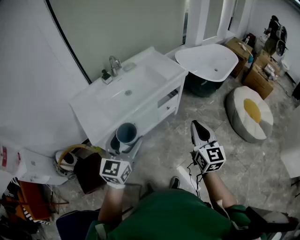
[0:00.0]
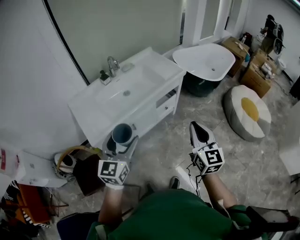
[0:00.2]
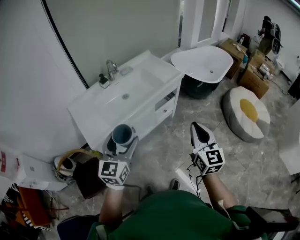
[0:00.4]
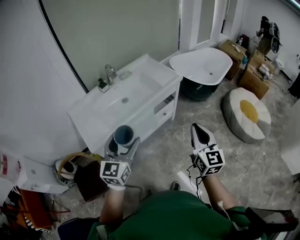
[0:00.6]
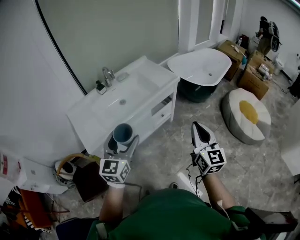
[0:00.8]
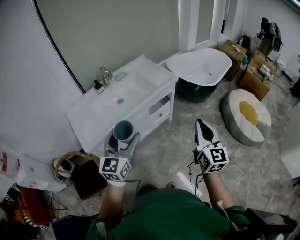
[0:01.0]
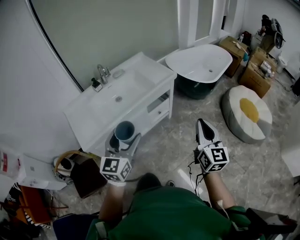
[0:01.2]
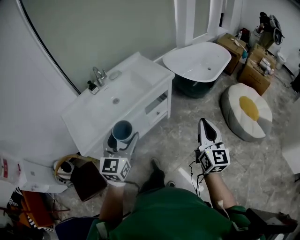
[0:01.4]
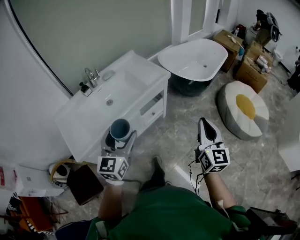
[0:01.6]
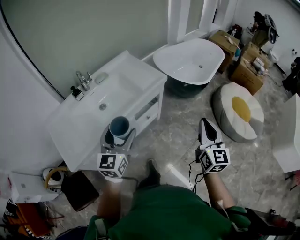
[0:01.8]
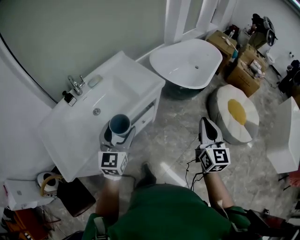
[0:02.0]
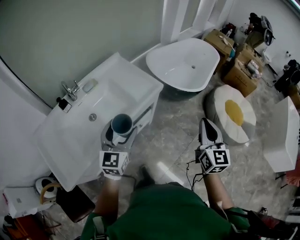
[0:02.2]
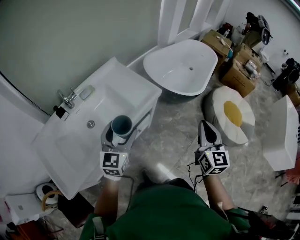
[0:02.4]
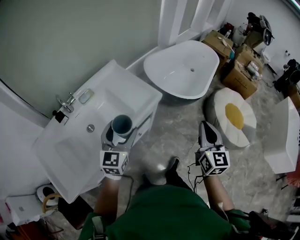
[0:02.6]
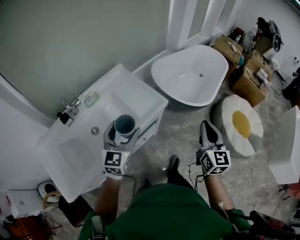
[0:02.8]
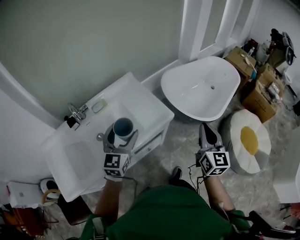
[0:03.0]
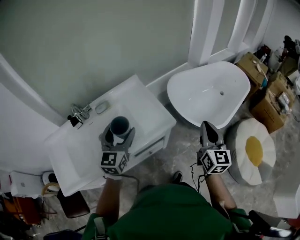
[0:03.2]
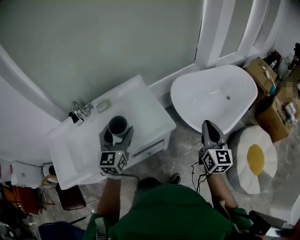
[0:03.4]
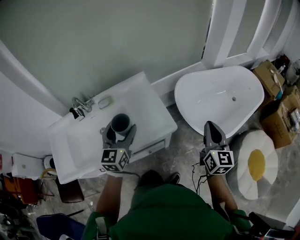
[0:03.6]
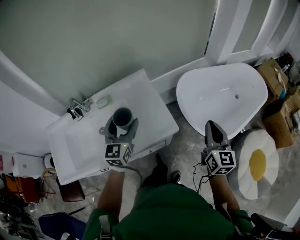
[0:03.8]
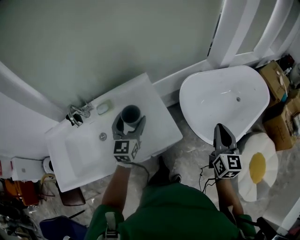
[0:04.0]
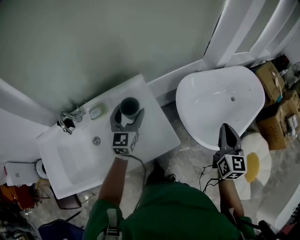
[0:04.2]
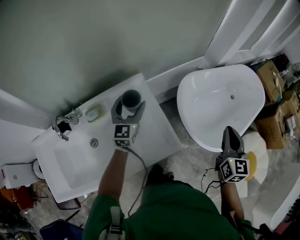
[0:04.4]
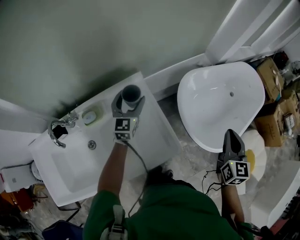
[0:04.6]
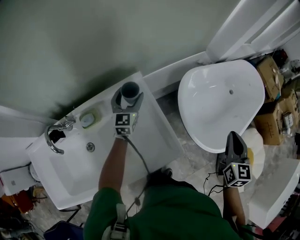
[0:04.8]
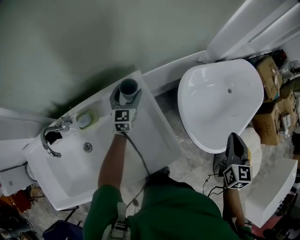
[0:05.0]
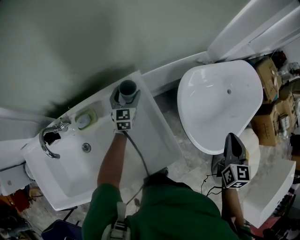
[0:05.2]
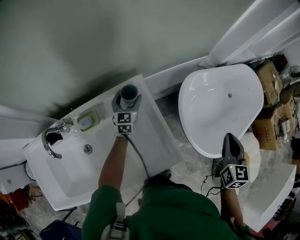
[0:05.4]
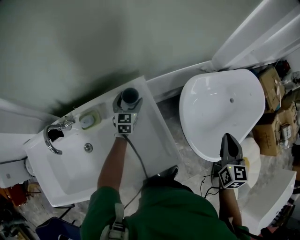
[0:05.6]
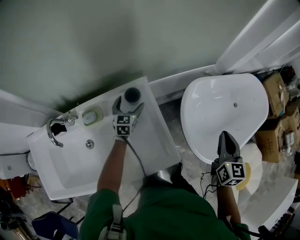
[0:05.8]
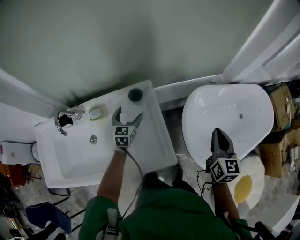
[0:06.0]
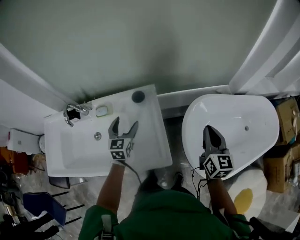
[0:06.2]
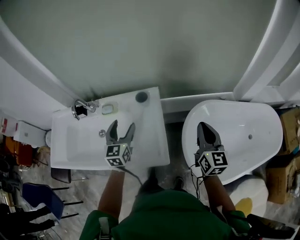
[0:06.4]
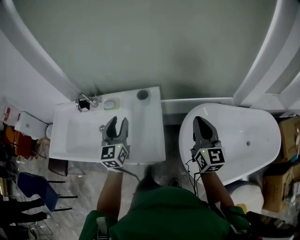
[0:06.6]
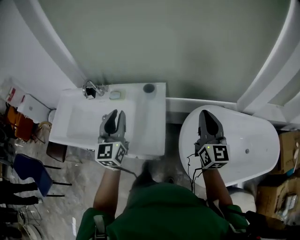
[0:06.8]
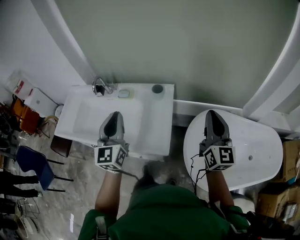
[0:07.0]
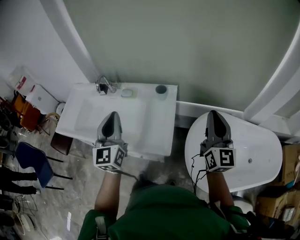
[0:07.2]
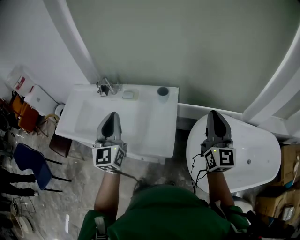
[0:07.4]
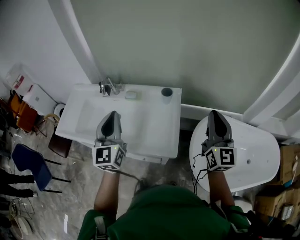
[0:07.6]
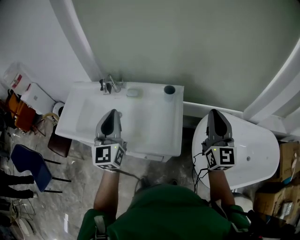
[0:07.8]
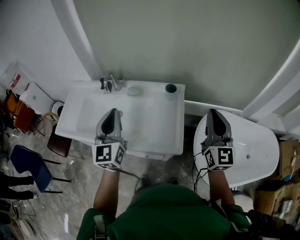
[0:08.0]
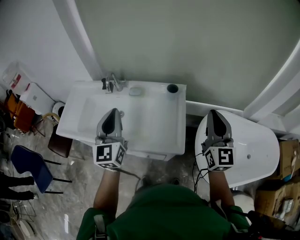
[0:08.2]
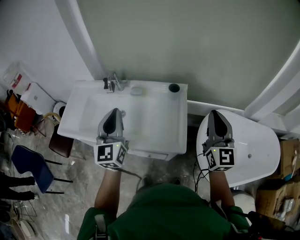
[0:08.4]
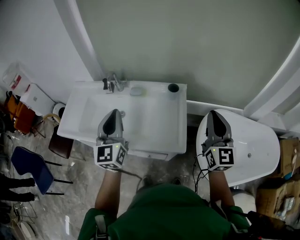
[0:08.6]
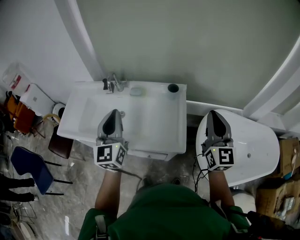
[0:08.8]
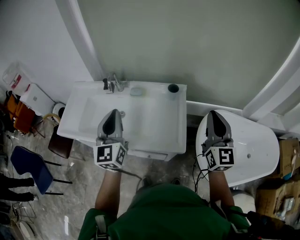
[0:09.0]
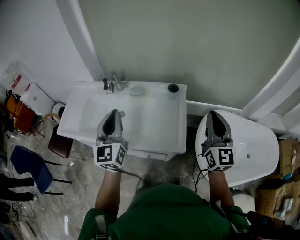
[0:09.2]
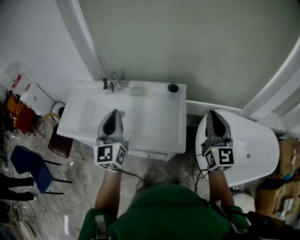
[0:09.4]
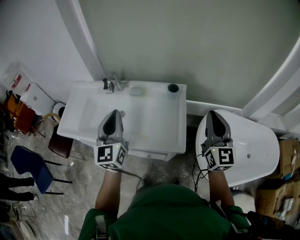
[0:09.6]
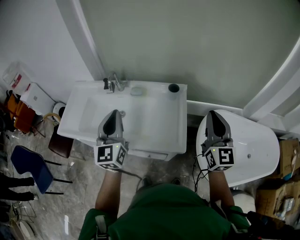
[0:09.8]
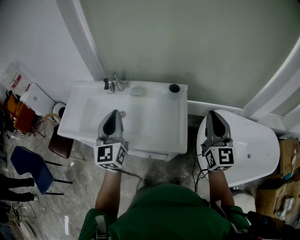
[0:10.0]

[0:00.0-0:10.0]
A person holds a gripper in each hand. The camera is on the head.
0:00.0 to 0:01.4: The left gripper goes some 15 cm to the right and forward; the right gripper is displaced to the right by roughly 15 cm.
0:01.4 to 0:02.8: The two grippers travel together, forward, about 40 cm.
0:02.8 to 0:04.2: The grippers both shift forward by some 40 cm. The left gripper swivels about 20 degrees.
0:04.2 to 0:05.8: The right gripper heads forward and downward, covering approximately 15 cm; the left gripper is displaced downward, forward and to the left by roughly 30 cm.
0:05.8 to 0:07.2: The right gripper is displaced upward by roughly 20 cm, and points its fingers about 30 degrees further upward; the left gripper moves approximately 50 cm, angles its fingers upward, by approximately 30 degrees, and closes.
0:07.2 to 0:08.6: The two grippers go approximately 15 cm to the left.
0:08.6 to 0:10.0: Both grippers stay about where they are.

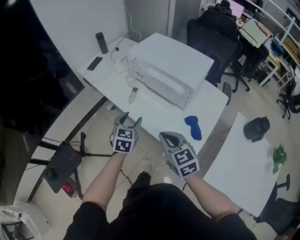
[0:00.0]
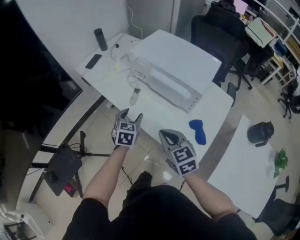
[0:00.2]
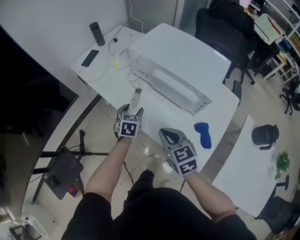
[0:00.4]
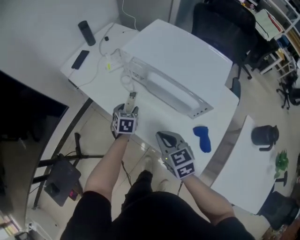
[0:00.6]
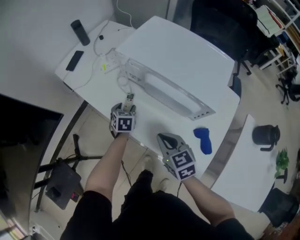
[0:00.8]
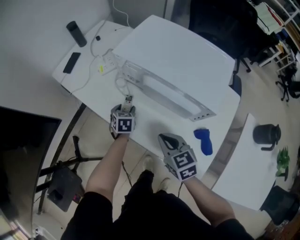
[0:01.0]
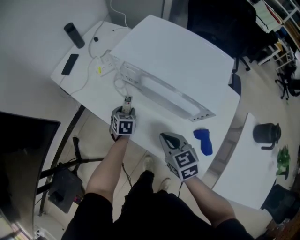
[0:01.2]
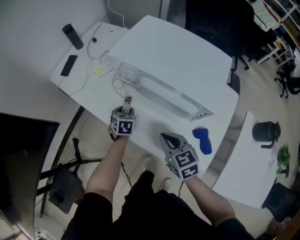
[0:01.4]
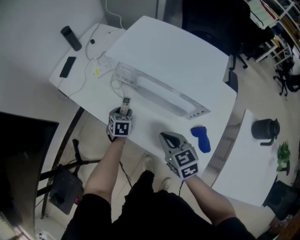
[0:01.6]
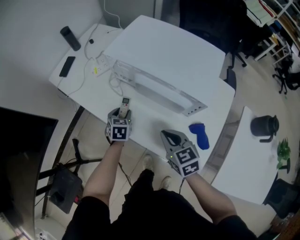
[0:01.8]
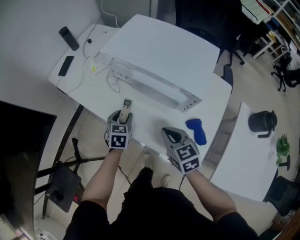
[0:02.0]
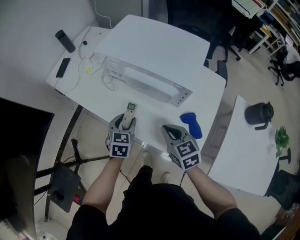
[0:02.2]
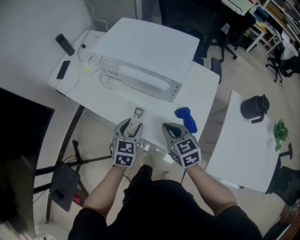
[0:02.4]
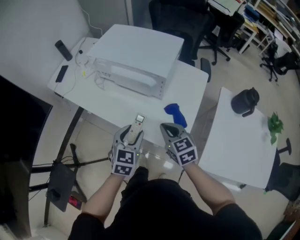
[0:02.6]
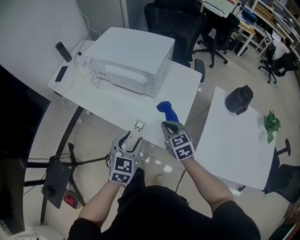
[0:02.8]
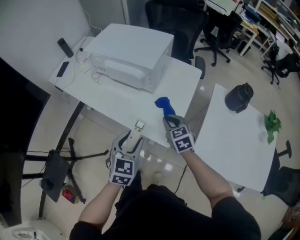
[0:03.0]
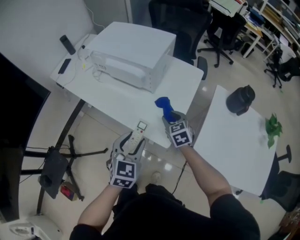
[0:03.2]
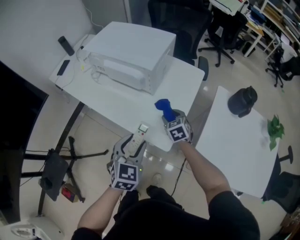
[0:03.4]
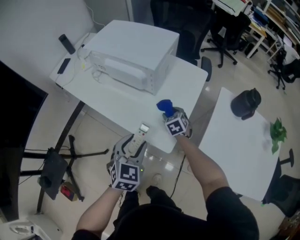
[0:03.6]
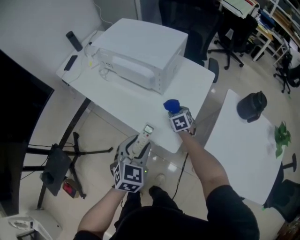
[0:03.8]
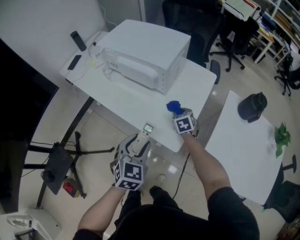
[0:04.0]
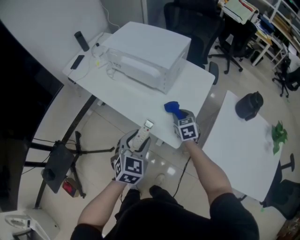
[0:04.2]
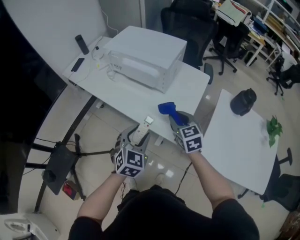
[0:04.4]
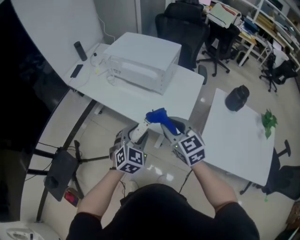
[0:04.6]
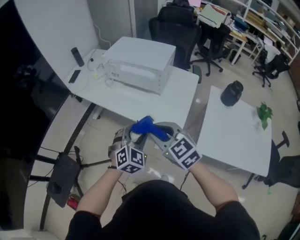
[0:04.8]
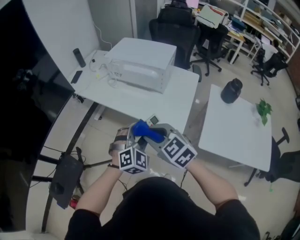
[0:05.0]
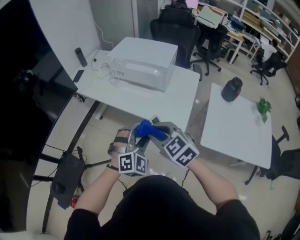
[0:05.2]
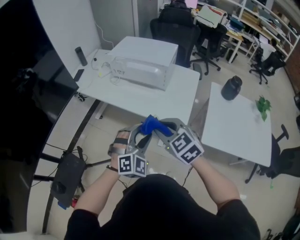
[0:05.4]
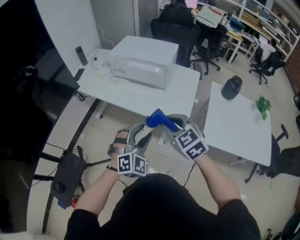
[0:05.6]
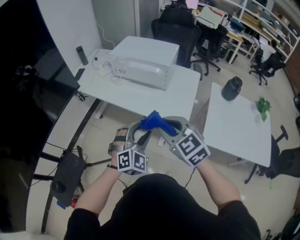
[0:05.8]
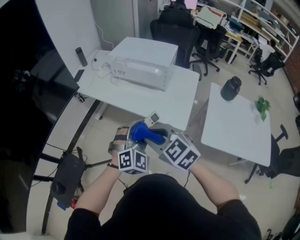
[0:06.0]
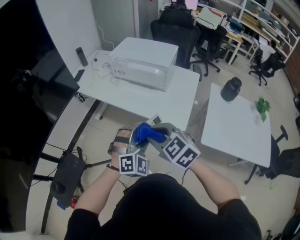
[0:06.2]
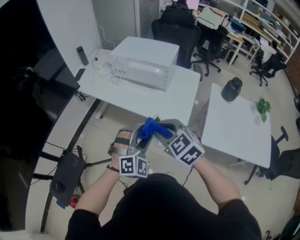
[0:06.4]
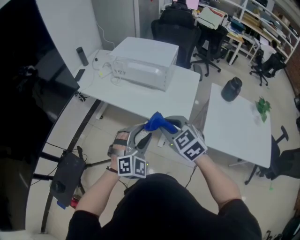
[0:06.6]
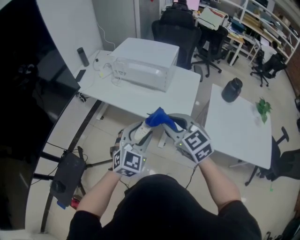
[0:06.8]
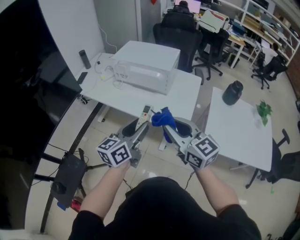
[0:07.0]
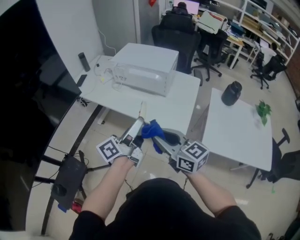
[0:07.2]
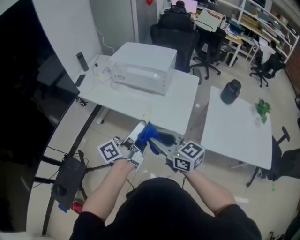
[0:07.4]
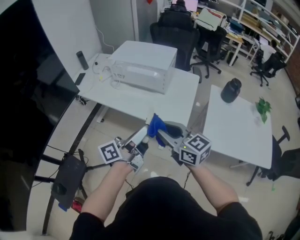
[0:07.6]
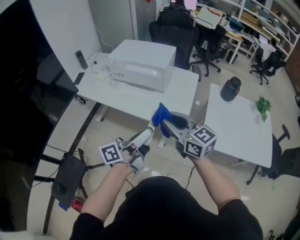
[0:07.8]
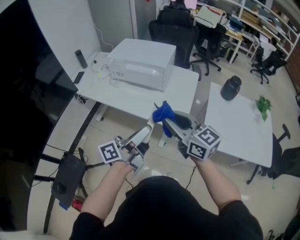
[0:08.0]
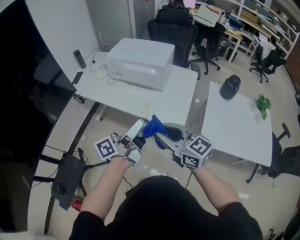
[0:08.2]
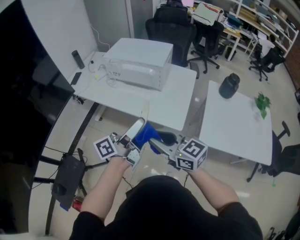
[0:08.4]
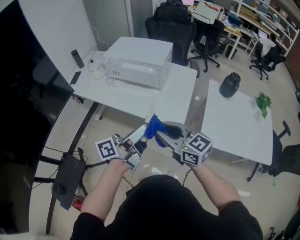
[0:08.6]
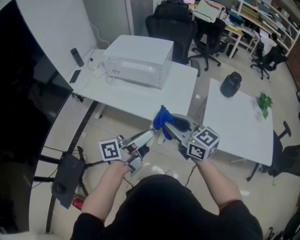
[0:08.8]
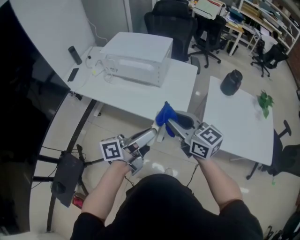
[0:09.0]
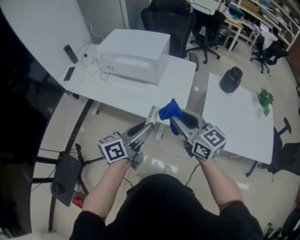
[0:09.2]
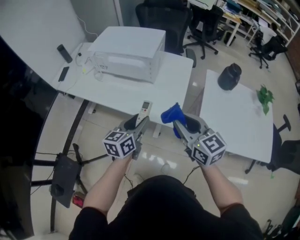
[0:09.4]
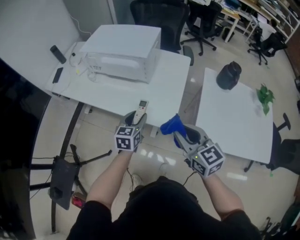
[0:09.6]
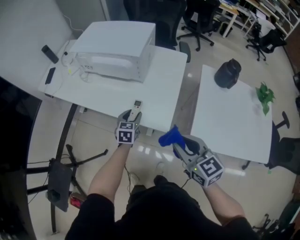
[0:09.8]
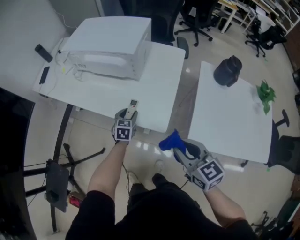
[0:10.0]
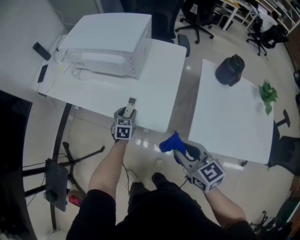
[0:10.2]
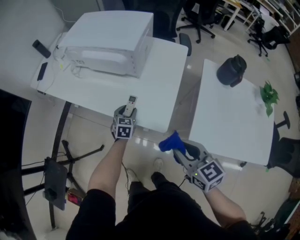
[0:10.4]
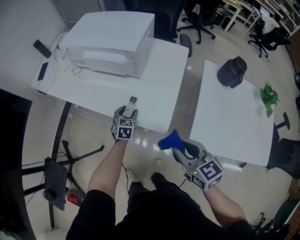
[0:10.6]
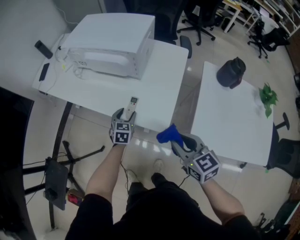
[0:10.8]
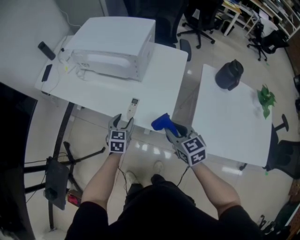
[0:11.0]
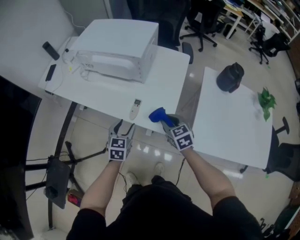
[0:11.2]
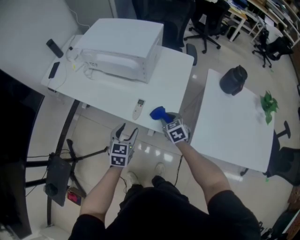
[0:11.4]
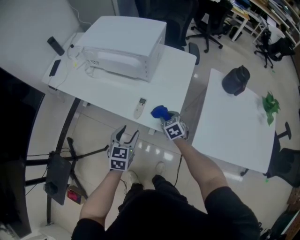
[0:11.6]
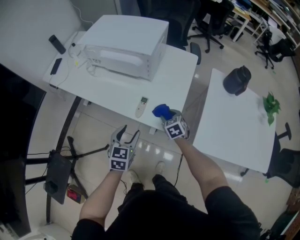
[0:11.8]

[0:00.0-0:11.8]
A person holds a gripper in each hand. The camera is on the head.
0:00.0 to 0:01.4: The grippers both shift forward and downward by approximately 25 cm. The left gripper swivels roughly 20 degrees.
0:01.4 to 0:03.0: The left gripper heads backward, upward and to the right, covering approximately 50 cm, and turns by some 30 degrees; the right gripper goes approximately 25 cm to the right and backward.
0:03.0 to 0:04.4: The right gripper goes about 10 cm upward, and opens, then closes again.
0:04.4 to 0:06.0: The right gripper goes left and right, approximately 25 cm each way, reversing 2 times, and swivels some 20 degrees. The left gripper travels backward, to the left and upward by roughly 15 cm, and changes its angle by roughly 30 degrees.
0:06.0 to 0:07.4: The left gripper is displaced upward by roughly 5 cm, and twists roughly 110 degrees counterclockwise, seen from behind; the right gripper turns by some 30 degrees.
0:07.4 to 0:08.8: The right gripper moves left and right over approximately 10 cm, changing direction 2 times, while the left gripper shifts about 5 cm to the right.
0:08.8 to 0:10.4: The left gripper is displaced downward and forward by some 40 cm, and points its fingers about 60 degrees further downward, while the right gripper travels to the right and downward by some 20 cm, and changes its angle by approximately 30 degrees.
0:10.4 to 0:11.8: The right gripper shifts roughly 25 cm downward and forward, and rotates about 30 degrees; the left gripper moves backward and upward, some 20 cm.

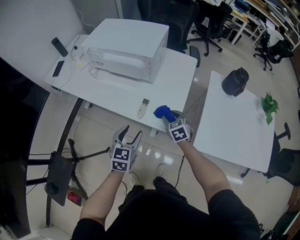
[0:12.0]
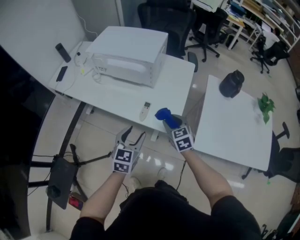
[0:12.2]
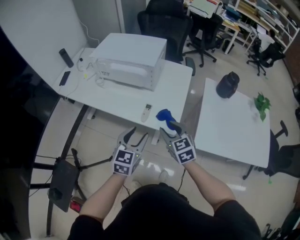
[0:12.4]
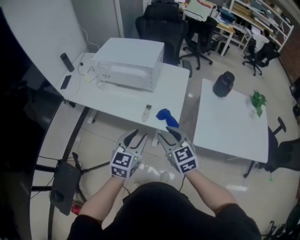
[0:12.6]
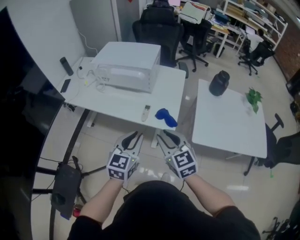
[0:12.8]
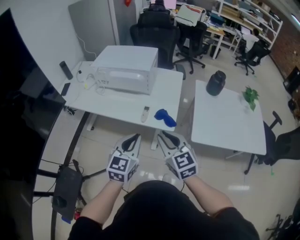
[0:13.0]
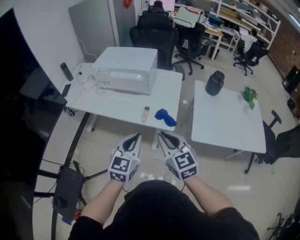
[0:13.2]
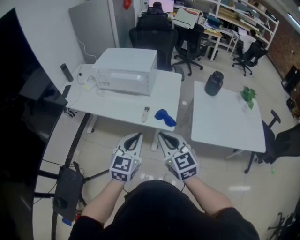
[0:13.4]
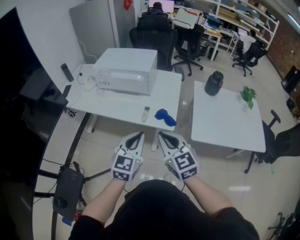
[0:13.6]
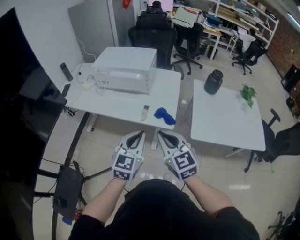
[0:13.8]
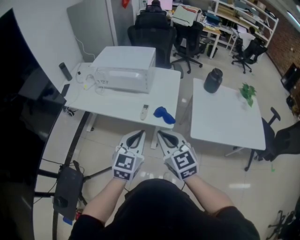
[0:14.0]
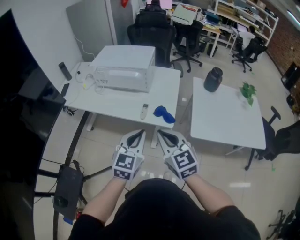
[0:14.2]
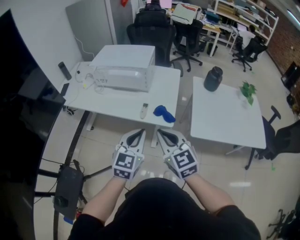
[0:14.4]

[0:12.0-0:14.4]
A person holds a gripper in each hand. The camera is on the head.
0:12.0 to 0:13.2: The right gripper travels upward and backward by roughly 35 cm, rotates approximately 30 degrees, and closes its fingers, while the left gripper is displaced upward and backward by approximately 20 cm, rotates roughly 20 degrees, and closes up.
0:13.2 to 0:14.4: The grippers make only small movements.
